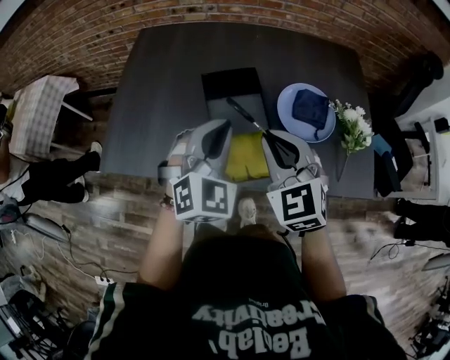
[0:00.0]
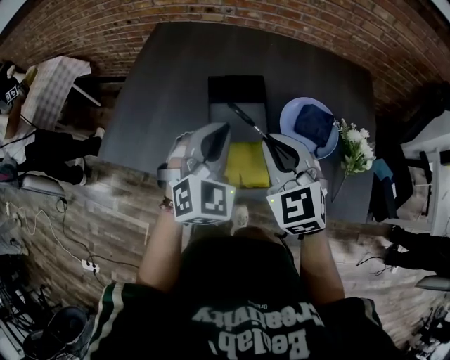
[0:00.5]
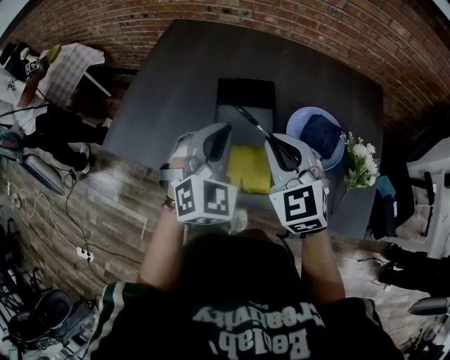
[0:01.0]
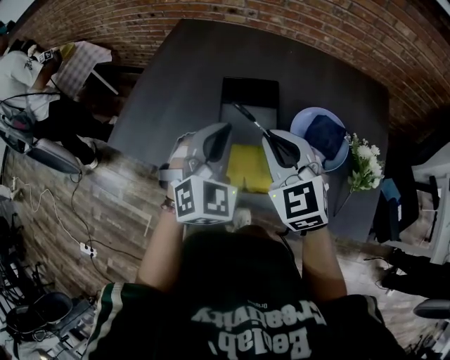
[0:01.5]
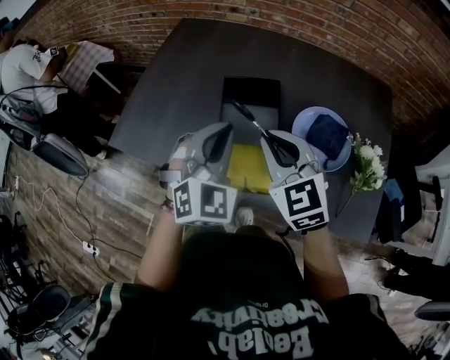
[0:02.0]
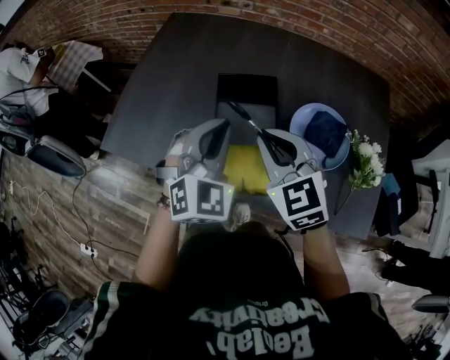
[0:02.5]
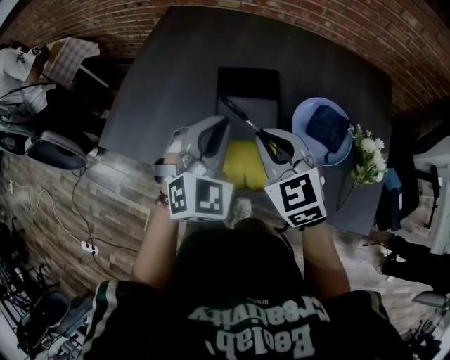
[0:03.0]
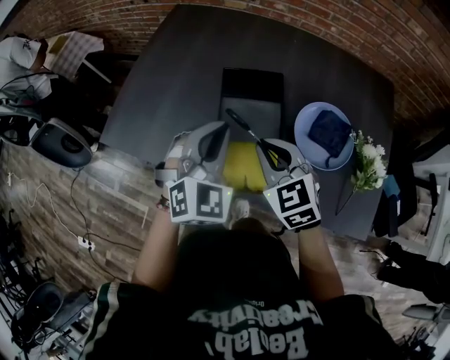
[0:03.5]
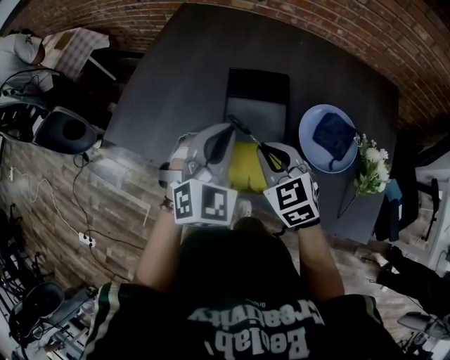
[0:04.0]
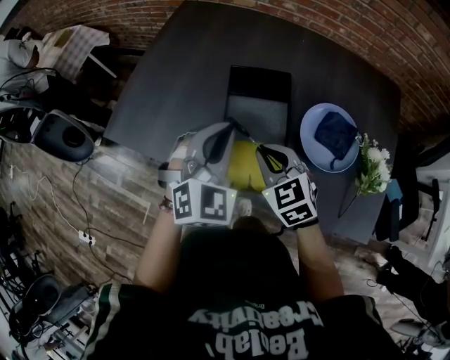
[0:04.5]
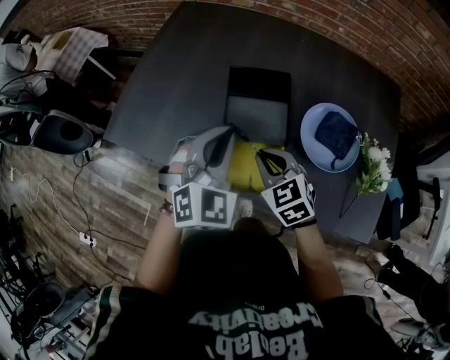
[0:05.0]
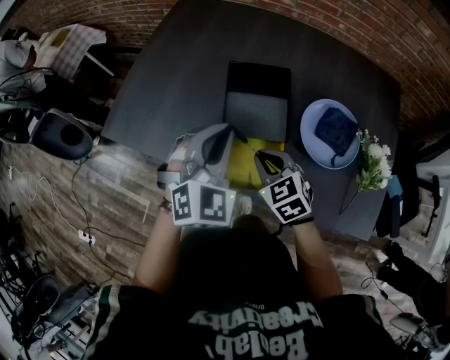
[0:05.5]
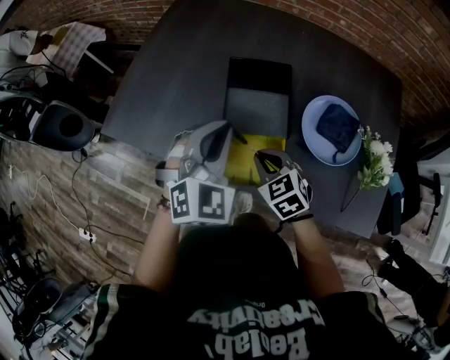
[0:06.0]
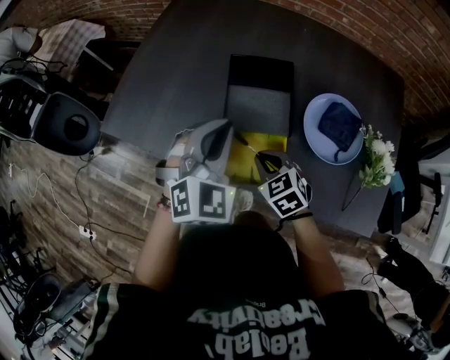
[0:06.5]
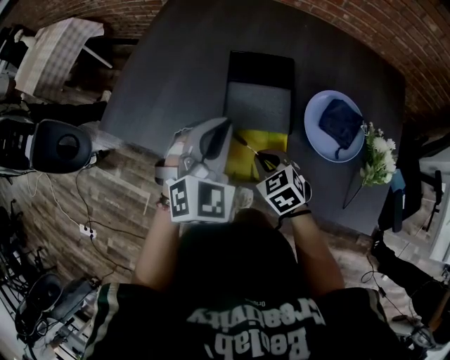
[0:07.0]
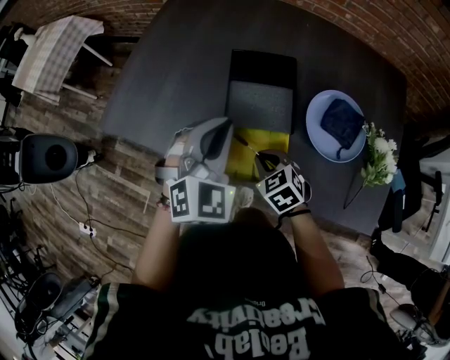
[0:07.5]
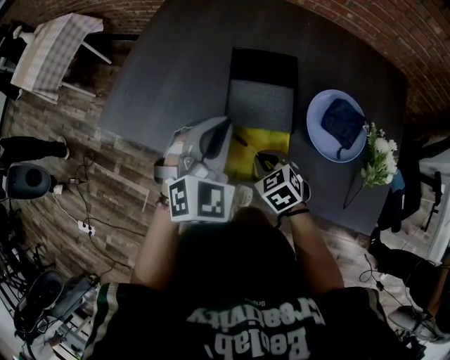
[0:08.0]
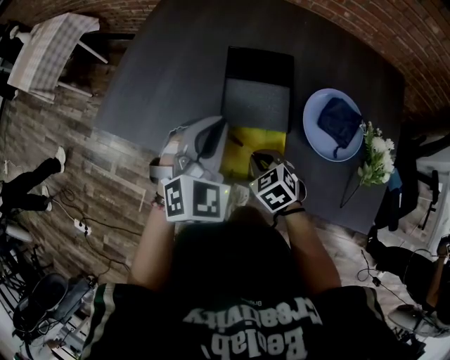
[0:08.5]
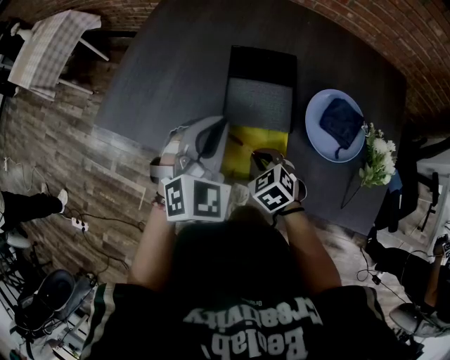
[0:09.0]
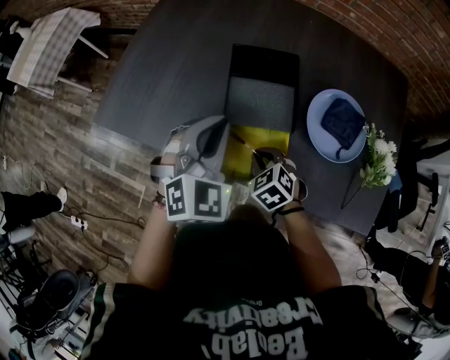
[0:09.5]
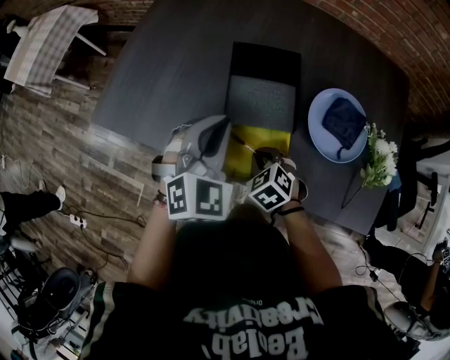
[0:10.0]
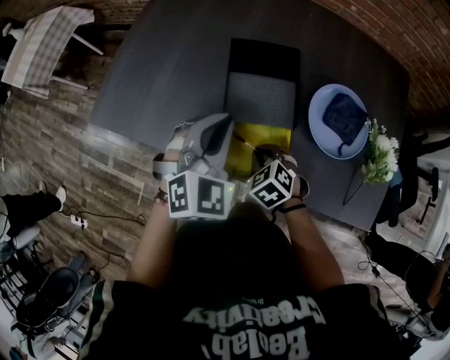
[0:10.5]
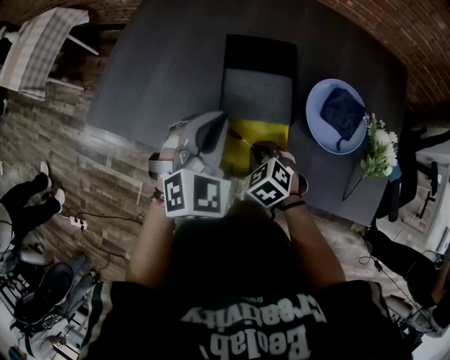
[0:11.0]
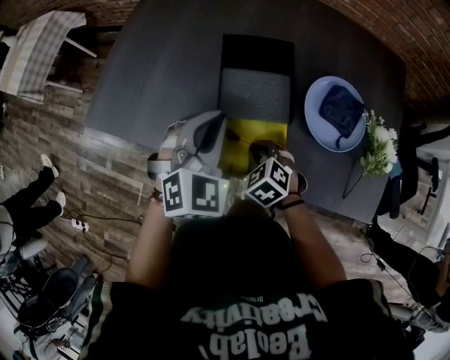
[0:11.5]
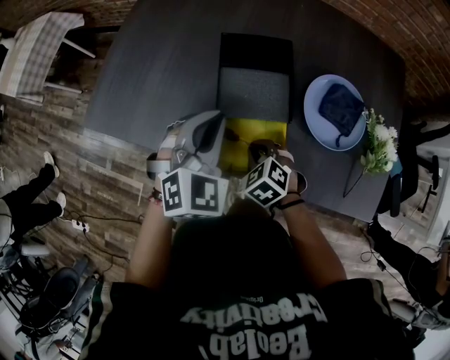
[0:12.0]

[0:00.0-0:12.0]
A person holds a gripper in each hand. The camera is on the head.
0:00.0 to 0:02.0: The grippers make only small movements.
0:02.0 to 0:04.0: The right gripper travels downward by roughly 10 cm.
0:04.0 to 0:06.0: The right gripper is displaced downward by roughly 10 cm.
0:06.0 to 0:08.0: The right gripper is displaced downward by about 5 cm.
0:08.0 to 0:12.0: The grippers make only small movements.

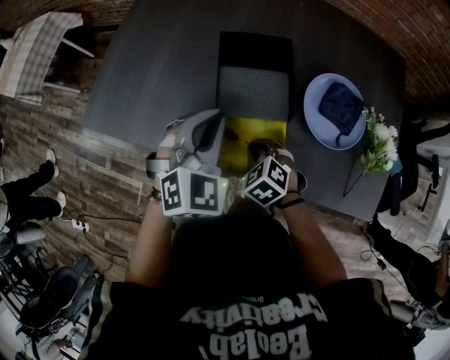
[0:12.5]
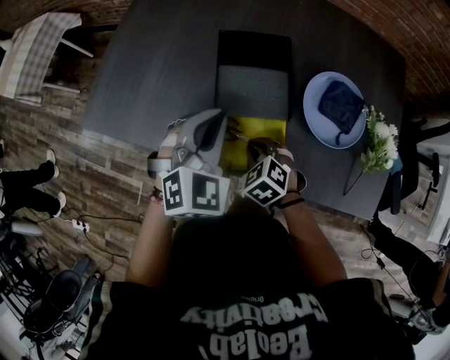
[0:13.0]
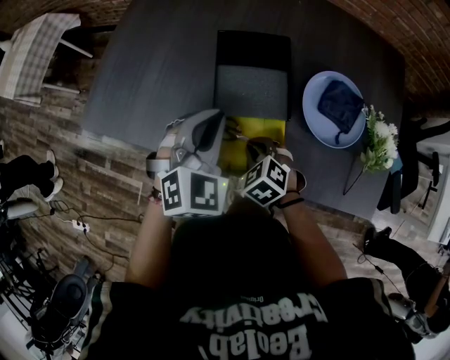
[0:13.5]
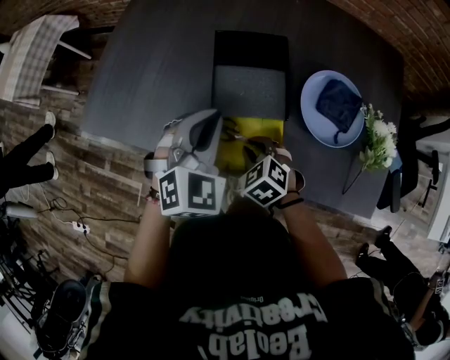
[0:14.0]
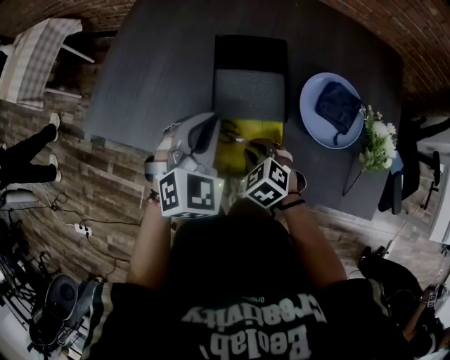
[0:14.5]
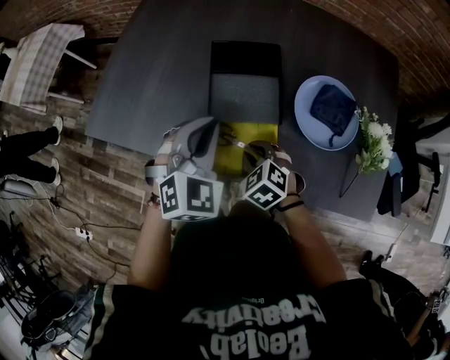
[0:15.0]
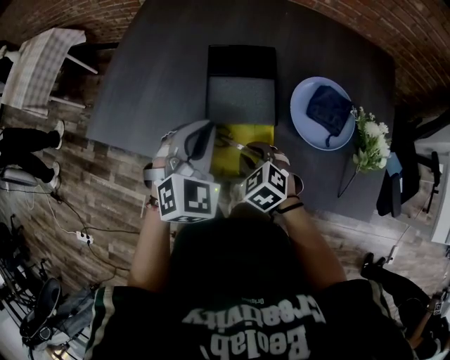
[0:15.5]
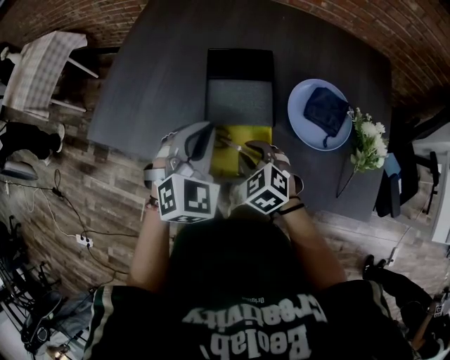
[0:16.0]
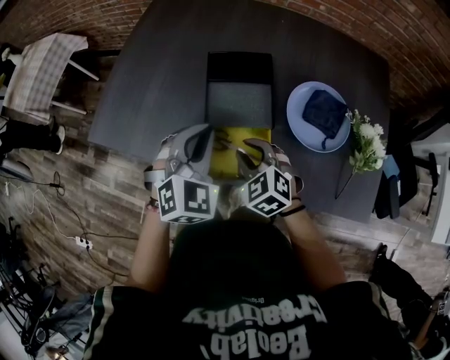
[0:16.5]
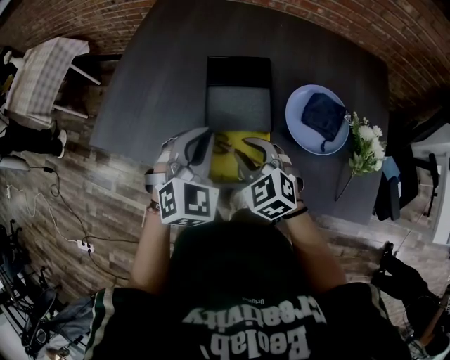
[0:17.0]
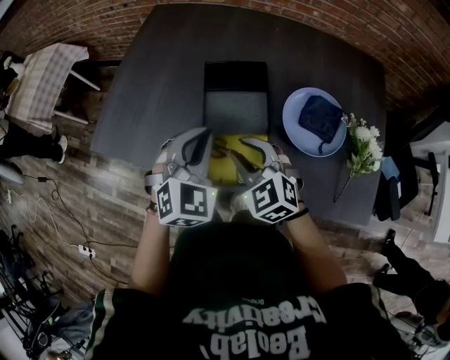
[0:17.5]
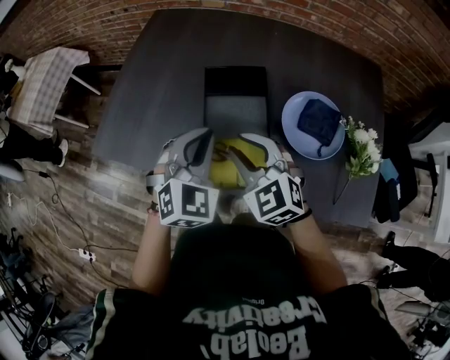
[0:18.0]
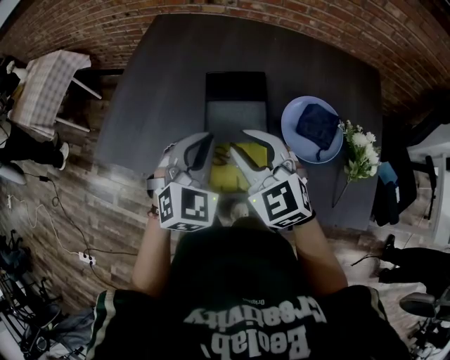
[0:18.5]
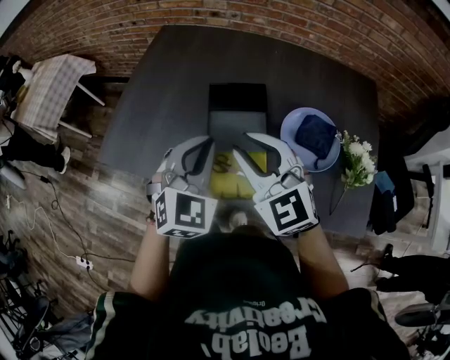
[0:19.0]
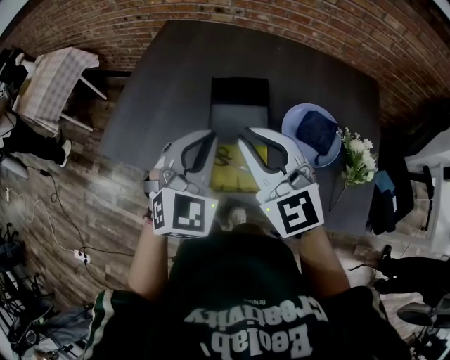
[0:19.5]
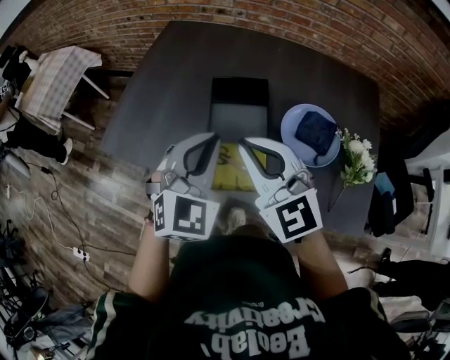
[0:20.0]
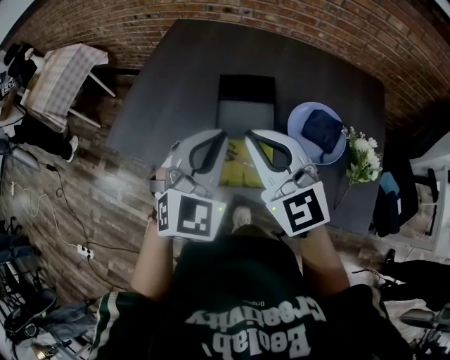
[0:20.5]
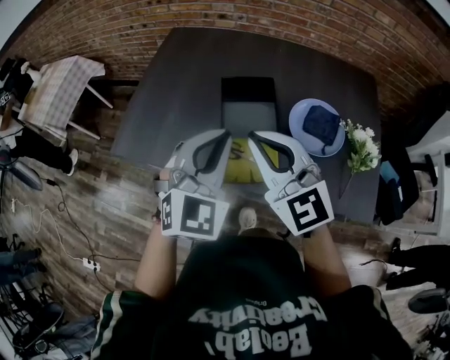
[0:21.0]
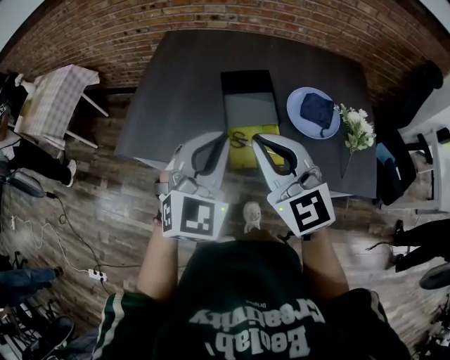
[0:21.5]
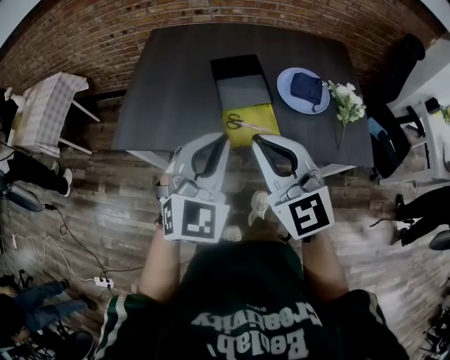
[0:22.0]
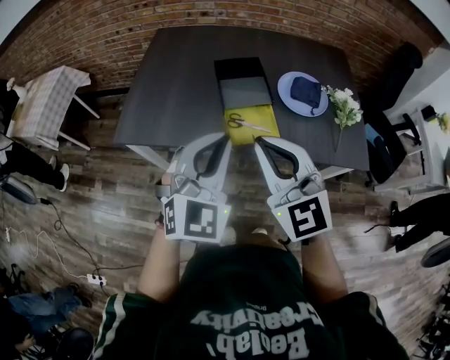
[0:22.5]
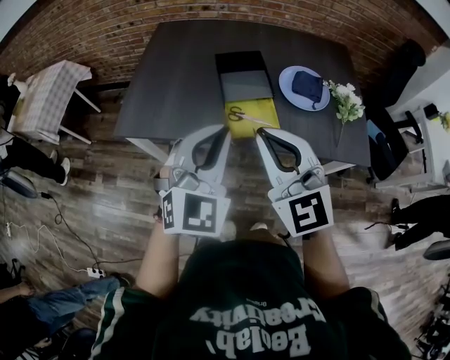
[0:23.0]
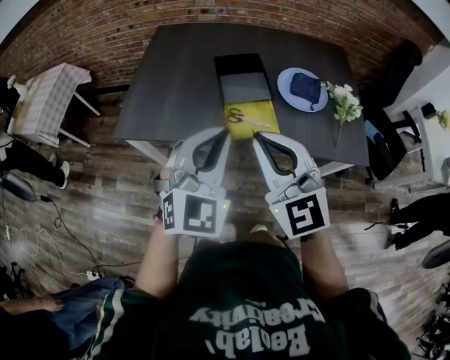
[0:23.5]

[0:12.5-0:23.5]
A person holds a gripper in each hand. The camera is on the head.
0:12.5 to 0:14.5: Both grippers stay put.
0:14.5 to 0:16.0: The right gripper travels upward by about 5 cm.
0:16.0 to 0:18.0: The right gripper is displaced upward by about 15 cm, and changes its angle by about 20 degrees.
0:18.0 to 0:20.0: The left gripper heads upward, covering roughly 10 cm, while the right gripper moves upward, some 10 cm, and closes.
0:20.0 to 0:21.5: The two grippers go approximately 10 cm backward and to the left.
0:21.5 to 0:23.5: Both grippers move backward, some 10 cm.

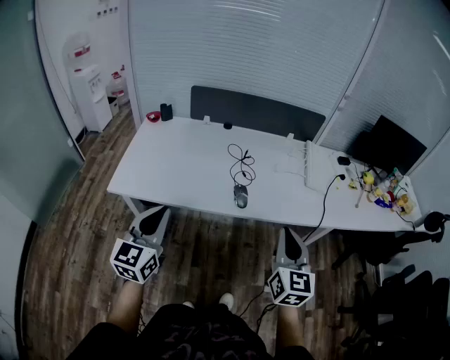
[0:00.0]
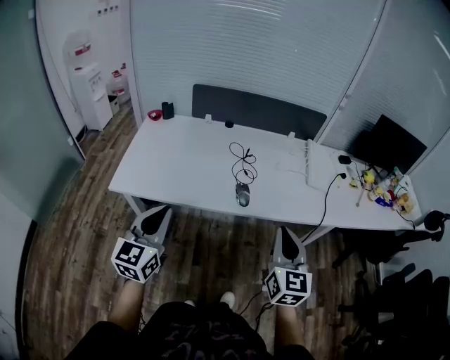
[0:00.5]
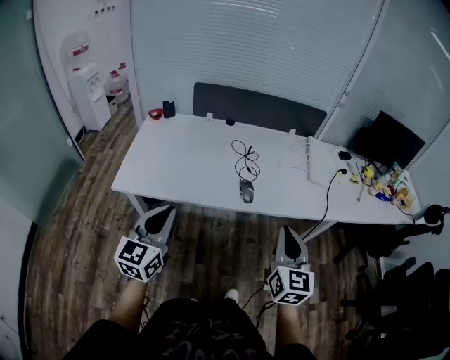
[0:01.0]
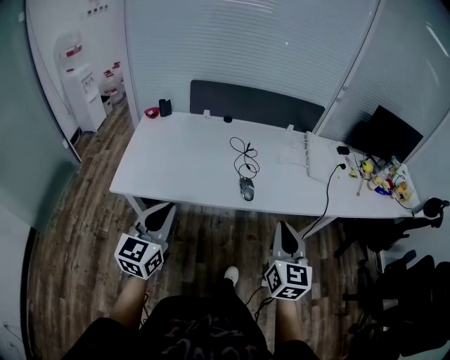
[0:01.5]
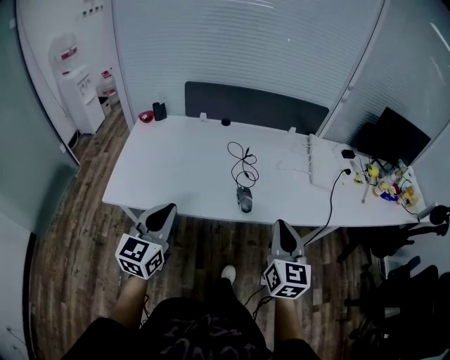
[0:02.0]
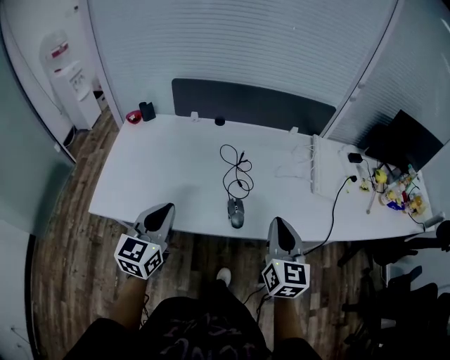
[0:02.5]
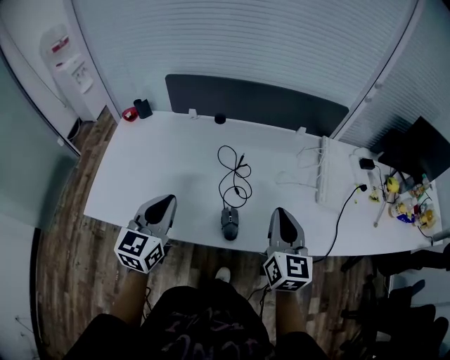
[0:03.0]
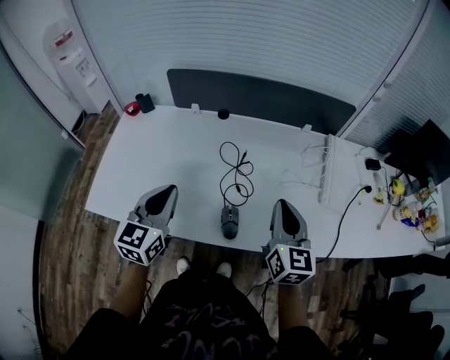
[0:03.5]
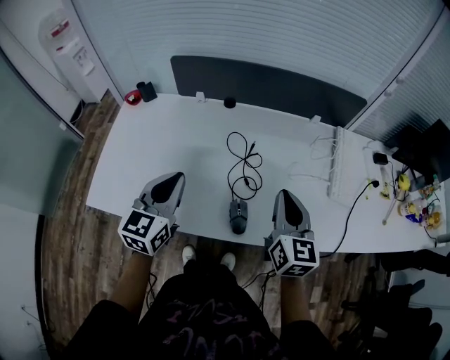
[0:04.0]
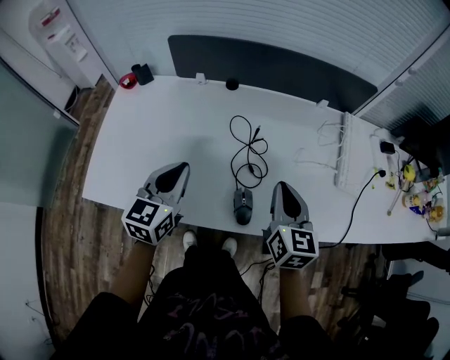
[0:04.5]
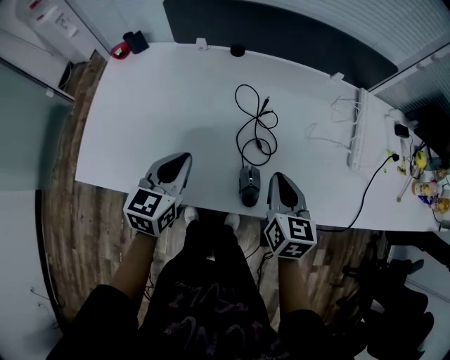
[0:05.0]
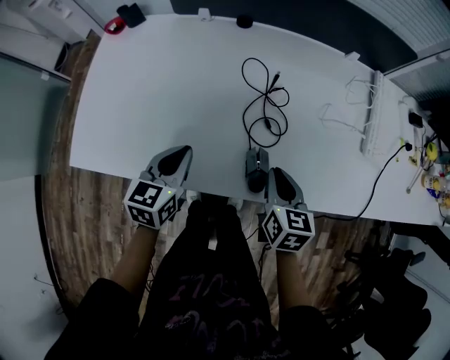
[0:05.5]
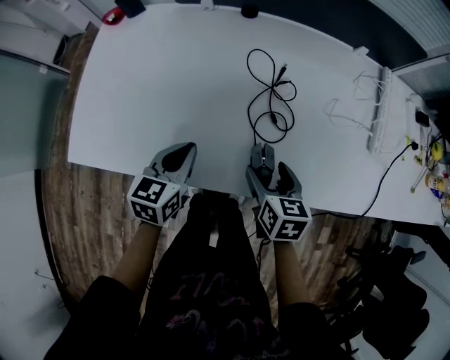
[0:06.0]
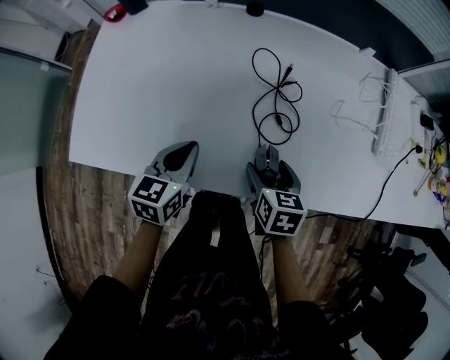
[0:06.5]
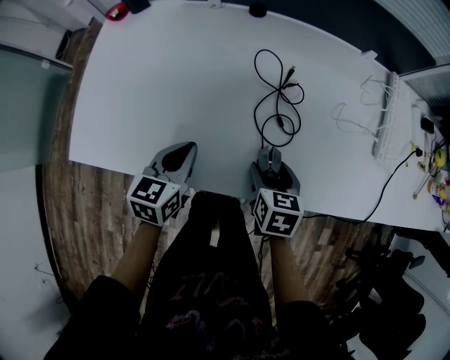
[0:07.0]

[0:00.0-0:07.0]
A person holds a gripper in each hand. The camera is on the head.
0:00.0 to 0:02.0: Both grippers travel together forward, roughly 5 cm.
0:02.0 to 0:03.5: The two grippers go about 25 cm forward.
0:03.5 to 0:05.0: The left gripper moves downward, some 10 cm; the right gripper goes roughly 15 cm downward and to the left, and swivels about 20 degrees.
0:05.0 to 0:07.0: The two grippers go about 10 cm downward. The right gripper changes its angle by roughly 20 degrees, and opens its fingers.
